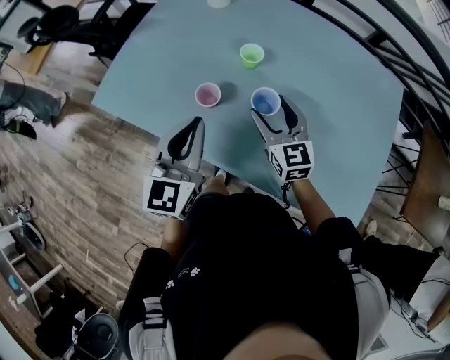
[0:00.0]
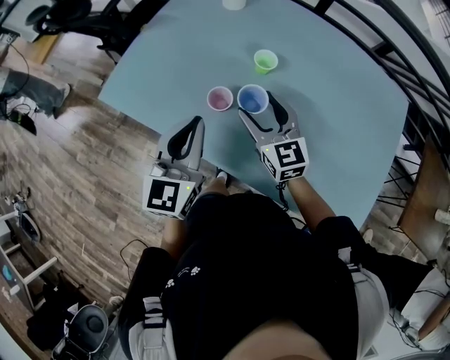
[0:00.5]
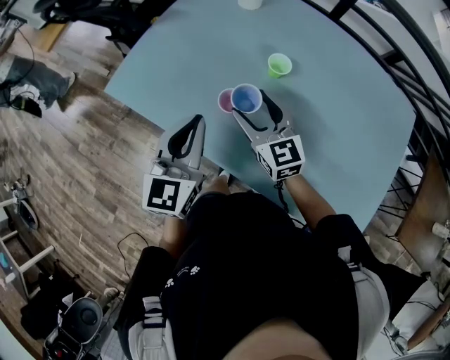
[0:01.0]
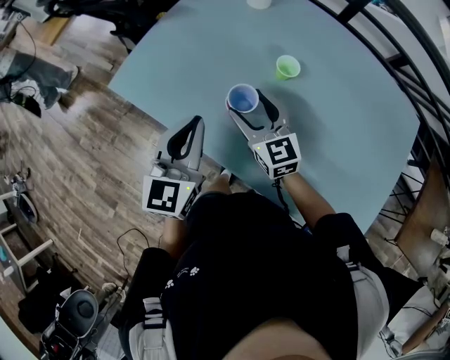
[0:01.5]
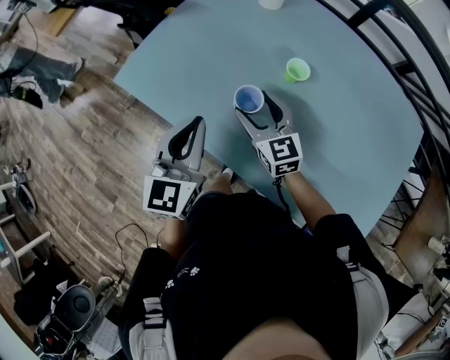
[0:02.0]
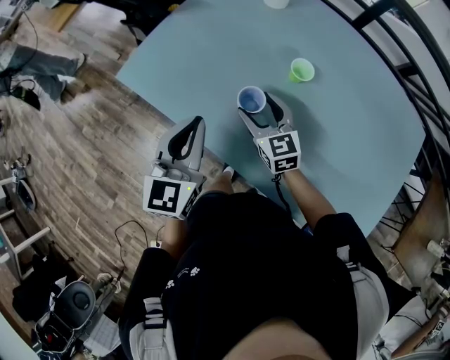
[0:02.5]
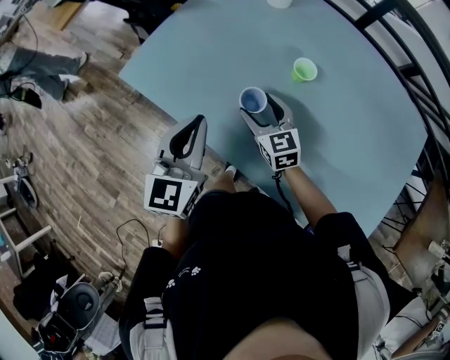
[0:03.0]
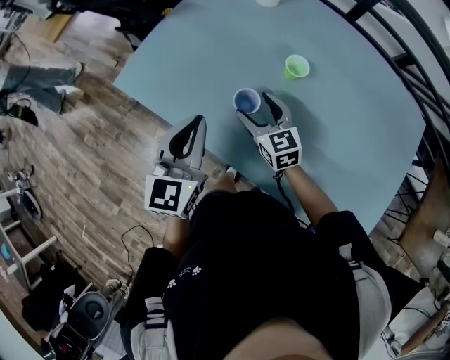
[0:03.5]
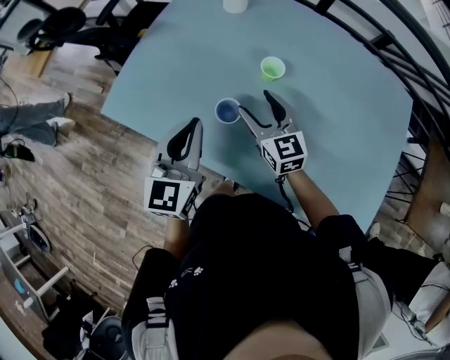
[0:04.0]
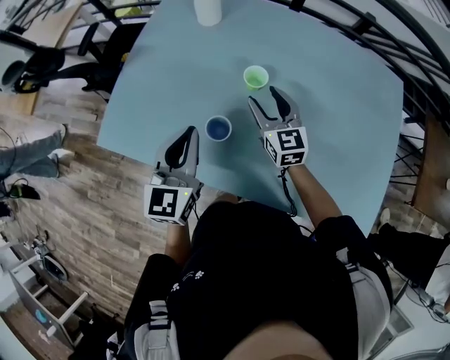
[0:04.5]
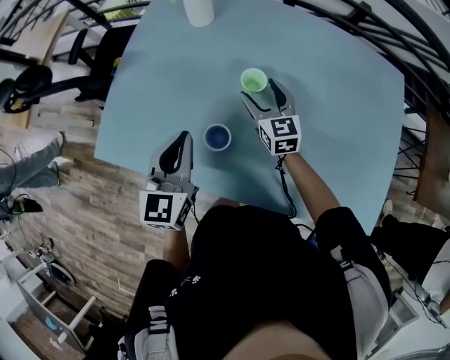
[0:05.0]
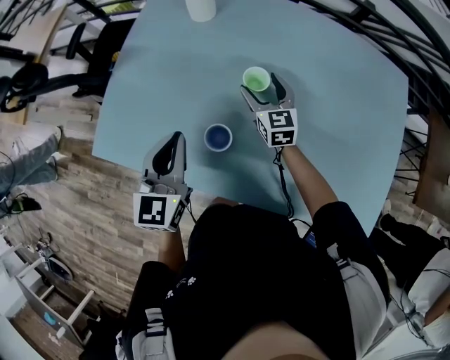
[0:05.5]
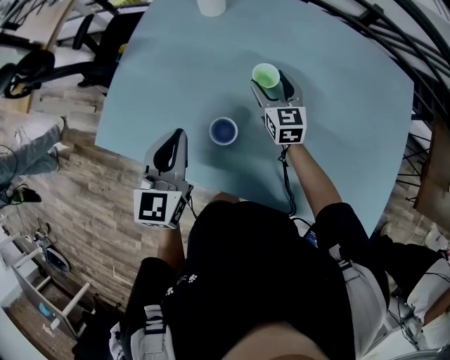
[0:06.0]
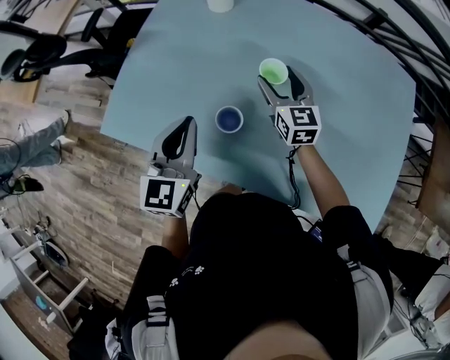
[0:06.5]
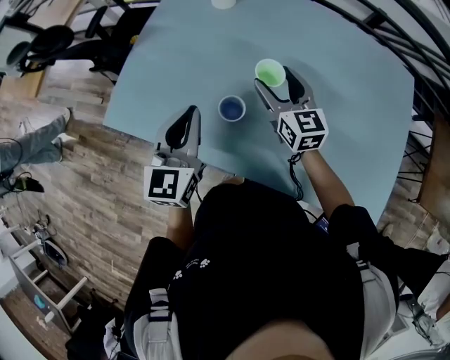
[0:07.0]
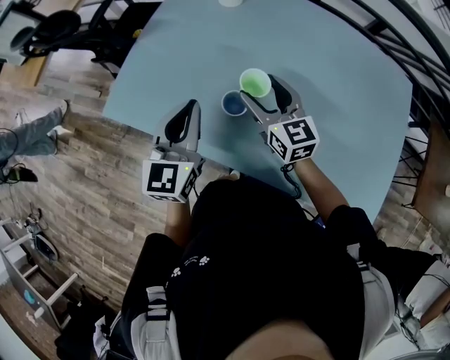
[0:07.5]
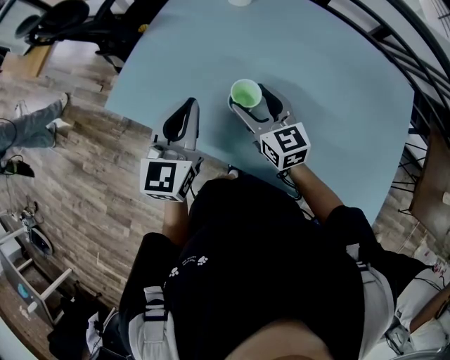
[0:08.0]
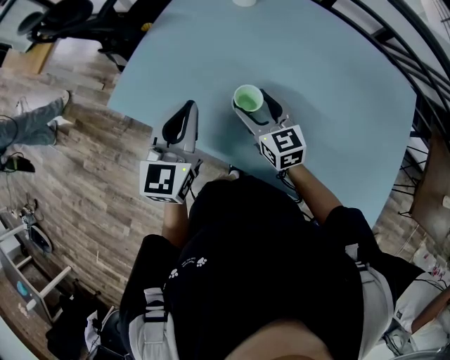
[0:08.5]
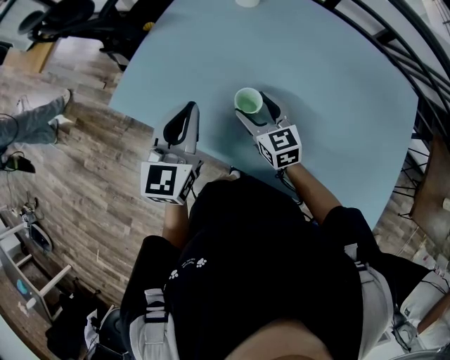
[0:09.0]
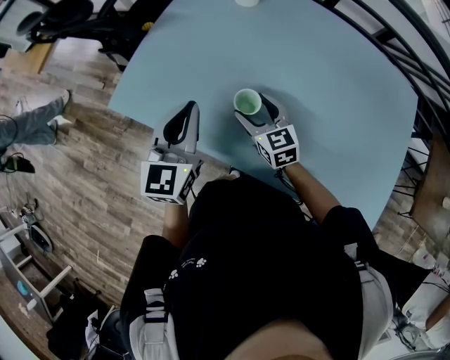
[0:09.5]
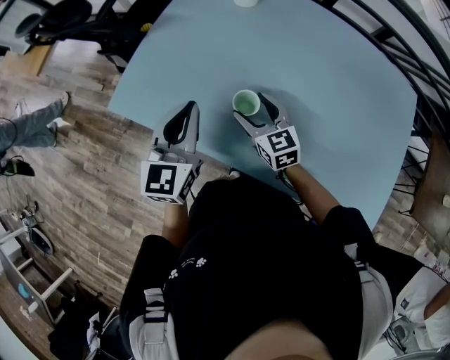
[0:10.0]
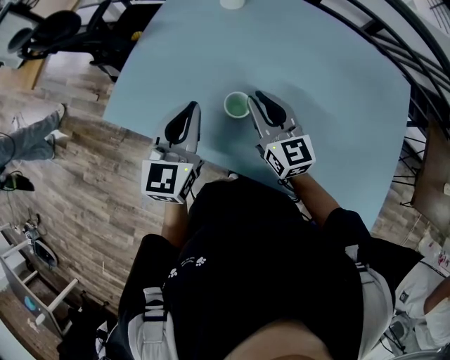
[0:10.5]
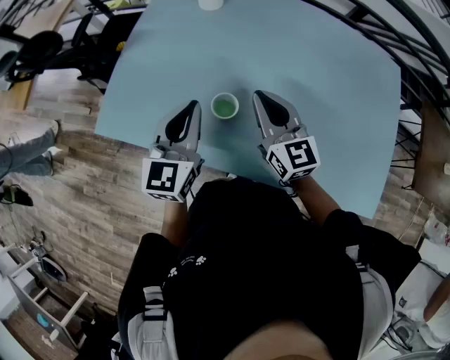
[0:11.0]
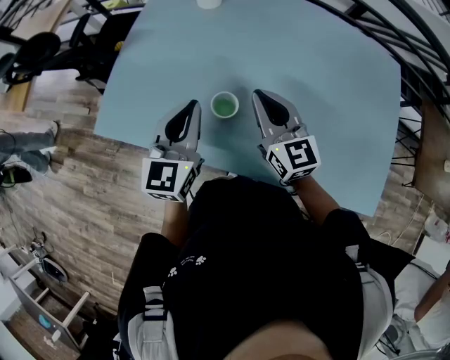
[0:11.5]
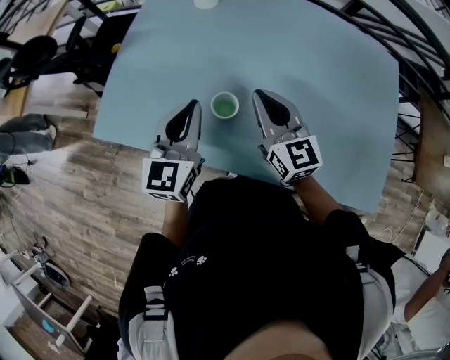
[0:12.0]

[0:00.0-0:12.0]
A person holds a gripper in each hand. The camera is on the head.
0:00.0 to 0:02.0: The right gripper moves to the left and forward, about 15 cm; the left gripper shifts about 10 cm to the left.
0:02.0 to 0:04.0: The right gripper heads to the right, covering roughly 5 cm.
0:04.0 to 0:06.0: The right gripper travels forward, to the right and downward by about 15 cm. Meanwhile the left gripper moves forward, roughly 5 cm.
0:06.0 to 0:08.0: The left gripper shifts by some 5 cm; the right gripper travels backward, to the left and upward by approximately 20 cm, and rotates about 20 degrees.
0:08.0 to 0:10.0: The right gripper heads downward, covering approximately 5 cm.
0:10.0 to 0:12.0: The left gripper goes approximately 5 cm to the right. Meanwhile the right gripper travels upward and to the right by approximately 15 cm, rotates roughly 20 degrees, and closes.

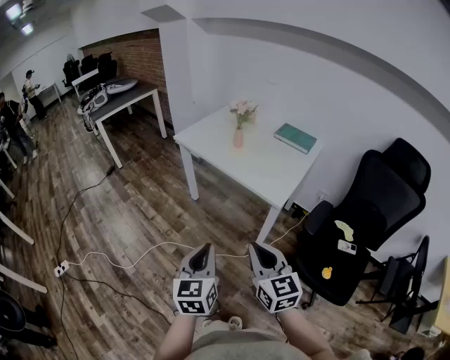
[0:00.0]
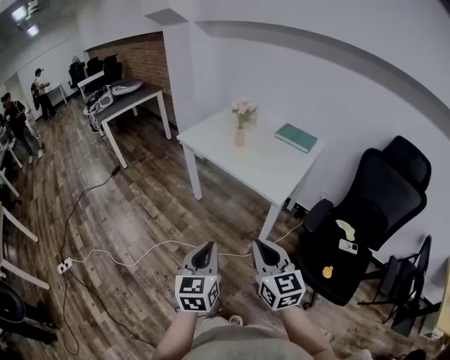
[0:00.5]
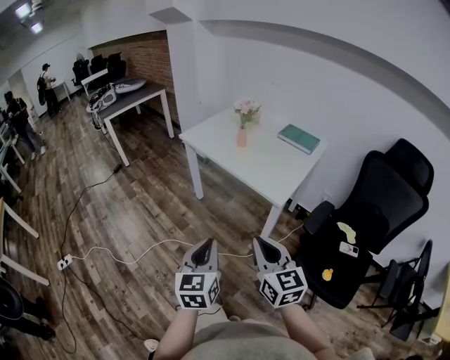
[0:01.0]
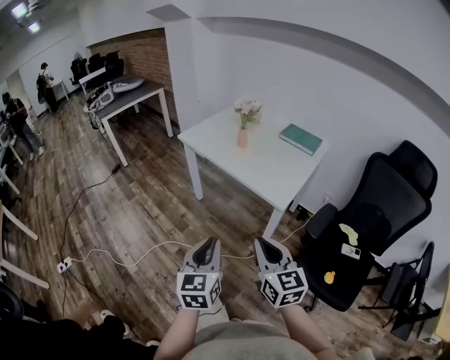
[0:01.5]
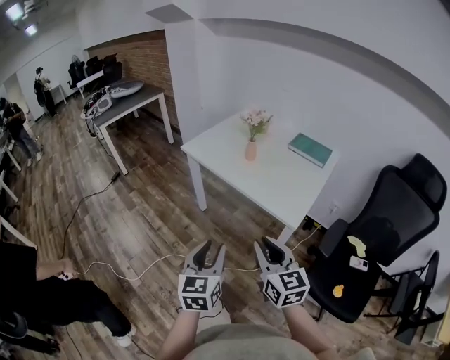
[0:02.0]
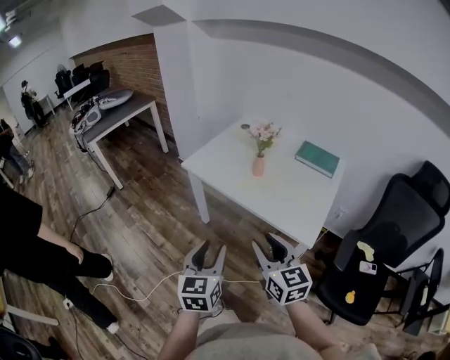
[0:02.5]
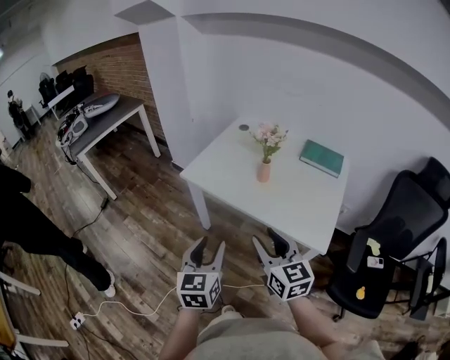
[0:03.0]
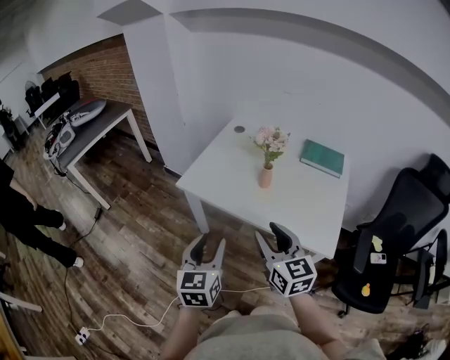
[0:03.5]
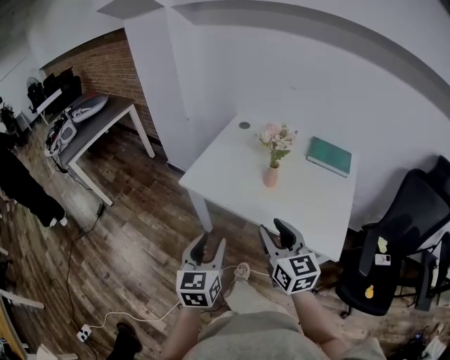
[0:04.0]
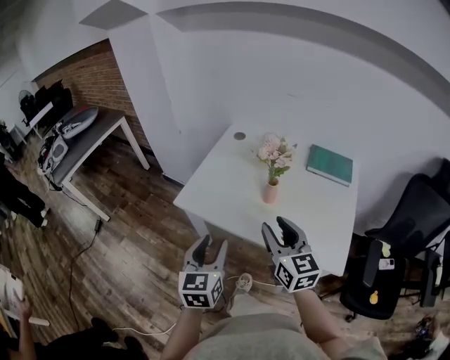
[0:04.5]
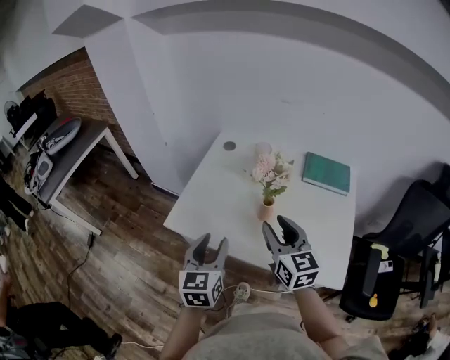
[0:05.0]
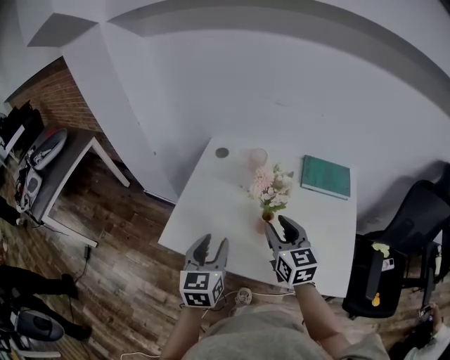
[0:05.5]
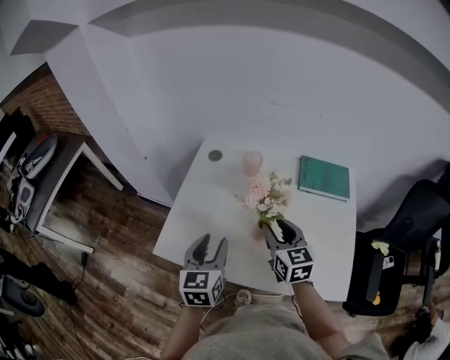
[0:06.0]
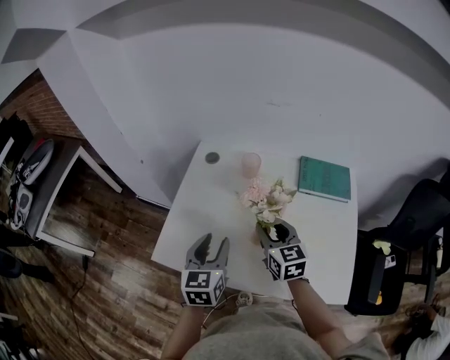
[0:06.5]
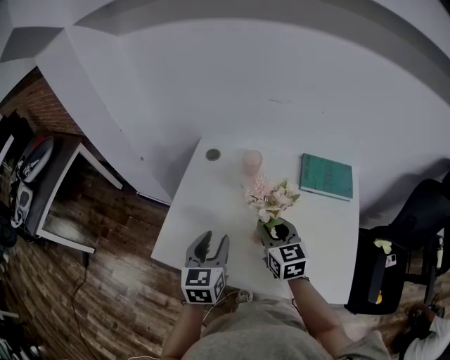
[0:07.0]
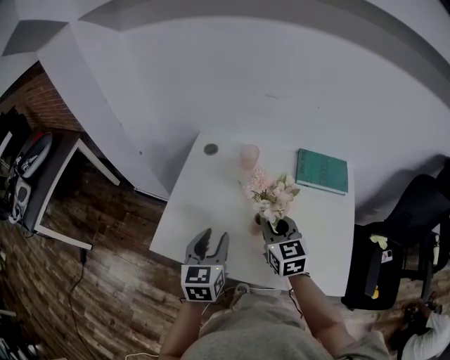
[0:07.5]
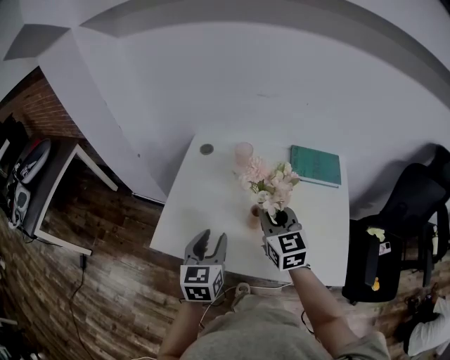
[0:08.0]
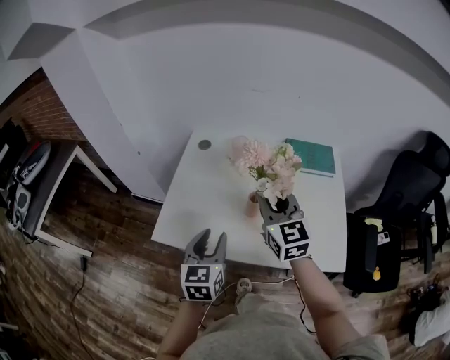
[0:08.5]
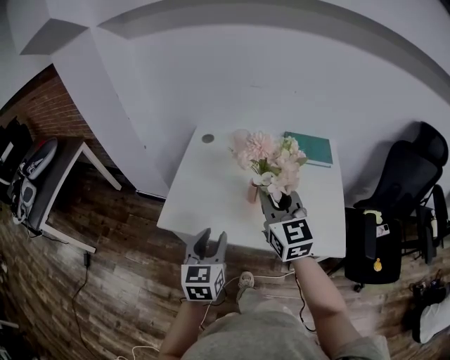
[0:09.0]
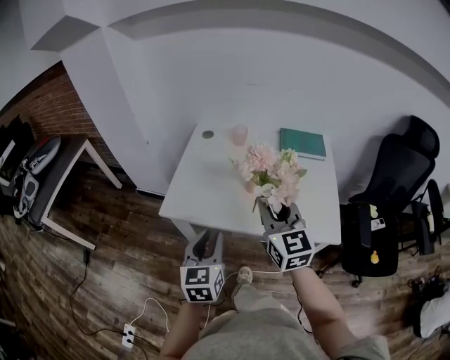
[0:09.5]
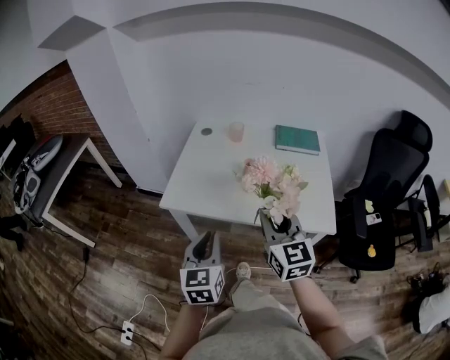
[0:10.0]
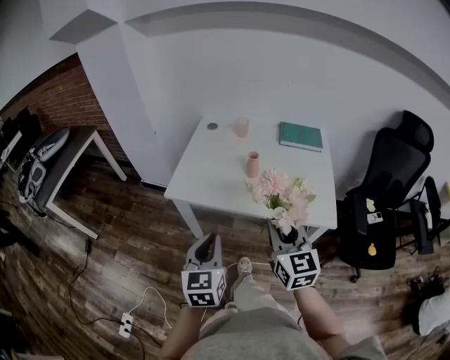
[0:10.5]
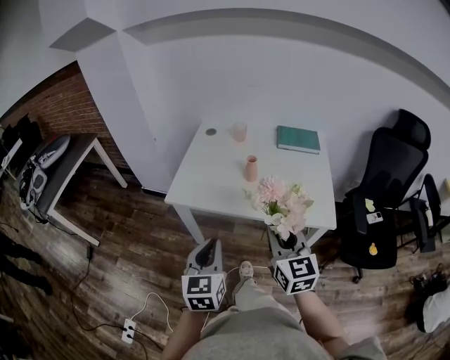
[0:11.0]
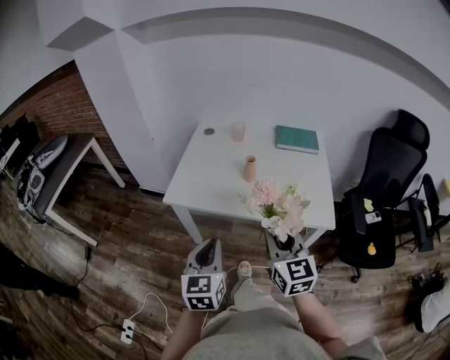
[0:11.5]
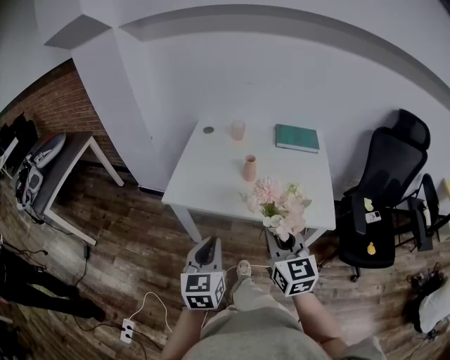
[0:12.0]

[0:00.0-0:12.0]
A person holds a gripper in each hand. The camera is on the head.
0:00.0 to 0:02.0: Both grippers move forward, approximately 10 cm. The left gripper opens its fingers.
0:02.0 to 0:04.0: The right gripper goes some 30 cm forward, and opens up, while the left gripper goes roughly 35 cm forward and to the left.
0:04.0 to 0:06.0: Both grippers travel together forward, some 30 cm.
0:06.0 to 0:08.0: The right gripper closes.
0:08.0 to 0:10.0: The two grippers go some 25 cm backward. The left gripper closes.
0:10.0 to 0:12.0: The right gripper is displaced backward by about 5 cm.

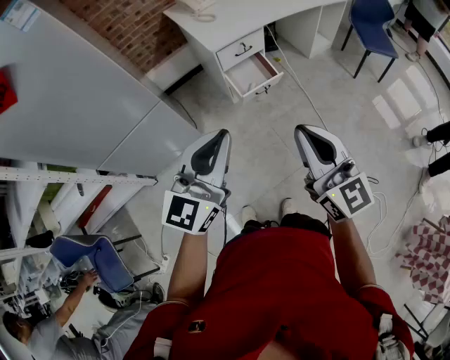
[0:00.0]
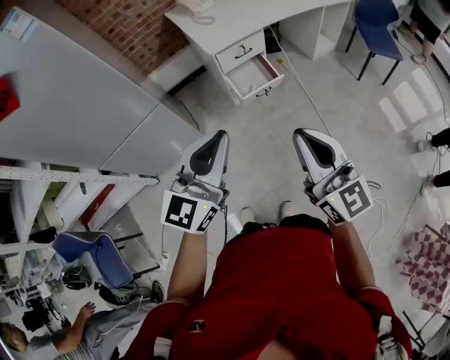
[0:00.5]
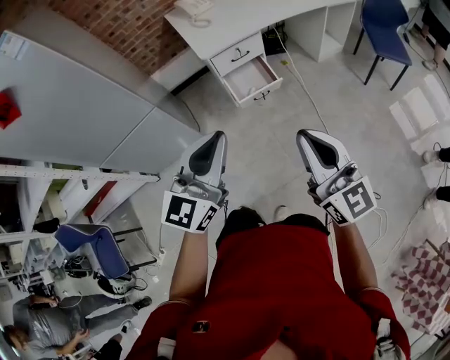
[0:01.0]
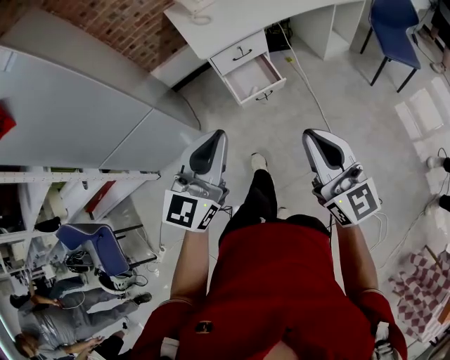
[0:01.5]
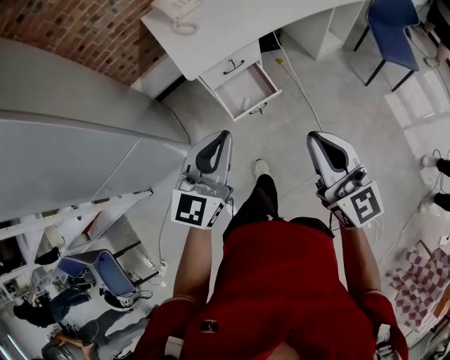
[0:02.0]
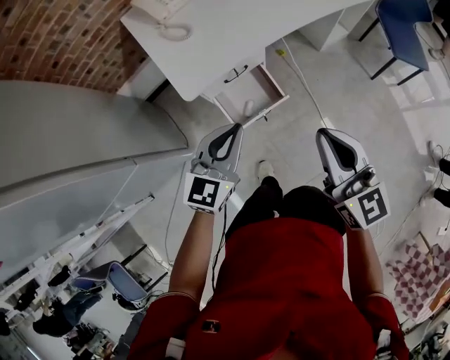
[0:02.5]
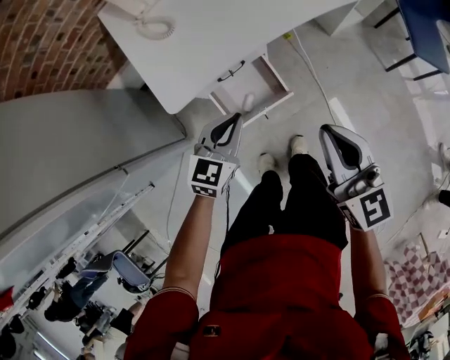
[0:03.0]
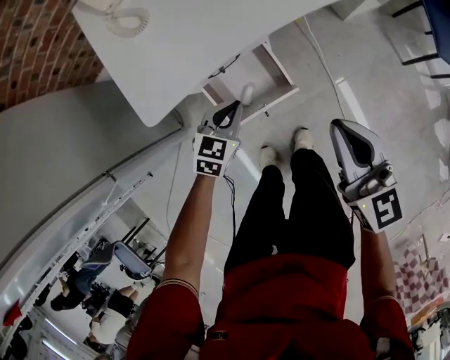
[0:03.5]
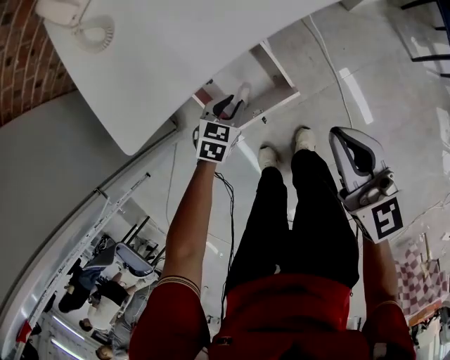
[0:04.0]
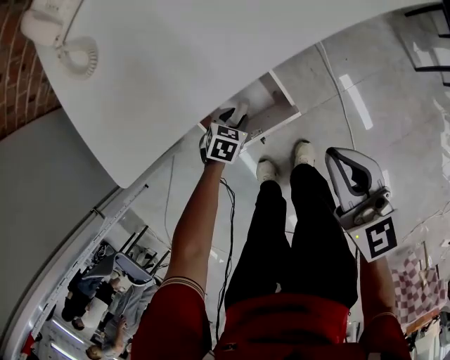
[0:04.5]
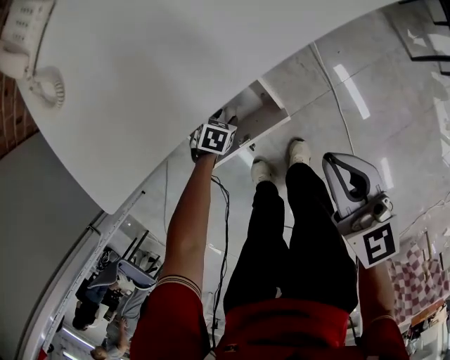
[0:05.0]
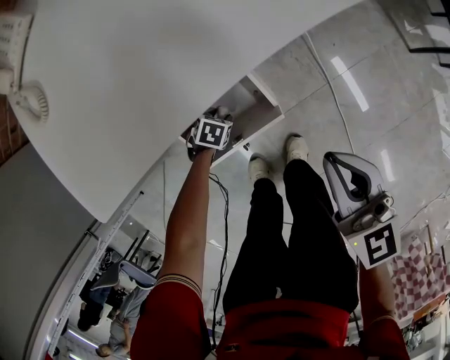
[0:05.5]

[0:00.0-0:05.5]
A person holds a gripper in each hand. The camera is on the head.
0:00.0 to 0:02.0: Both grippers move forward and to the right, some 30 cm.
0:02.0 to 0:03.5: The right gripper heads forward and downward, covering some 35 cm, while the left gripper goes approximately 50 cm downward and forward, and points its fingers some 40 degrees further downward.
0:03.5 to 0:05.5: The right gripper heads downward, covering approximately 15 cm. Meanwhile the left gripper is displaced downward by approximately 35 cm, points its fingers some 40 degrees further downward, and opens.
